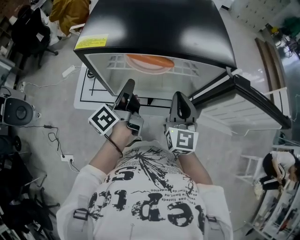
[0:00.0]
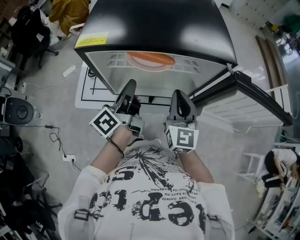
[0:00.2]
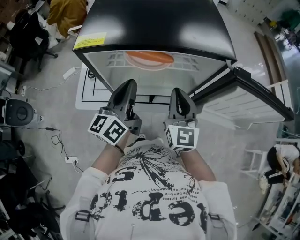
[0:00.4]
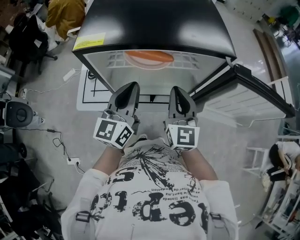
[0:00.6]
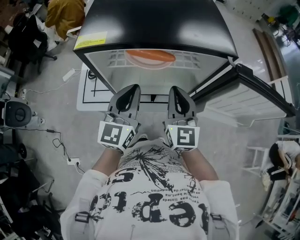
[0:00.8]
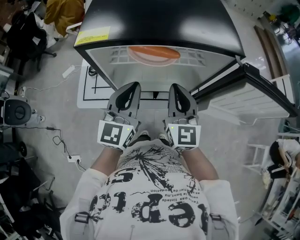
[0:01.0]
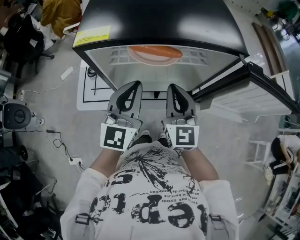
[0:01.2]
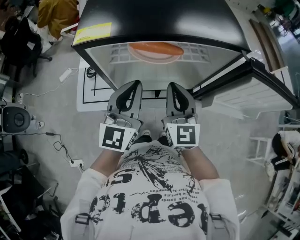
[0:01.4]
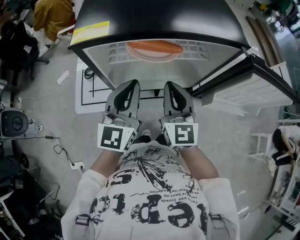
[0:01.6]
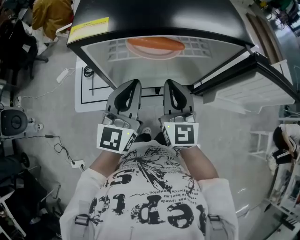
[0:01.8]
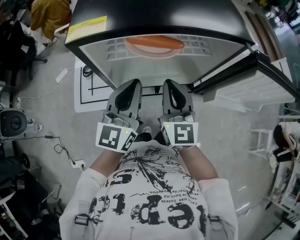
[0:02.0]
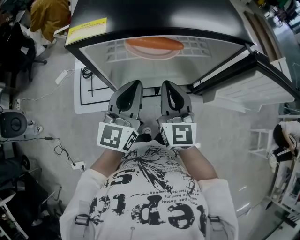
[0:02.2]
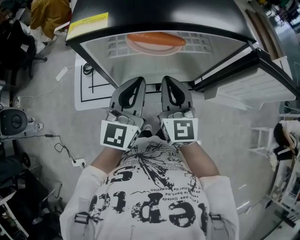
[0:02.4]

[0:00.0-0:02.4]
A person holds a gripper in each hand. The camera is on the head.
0:00.0 to 0:01.2: The right gripper moves some 5 cm.

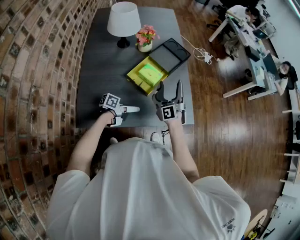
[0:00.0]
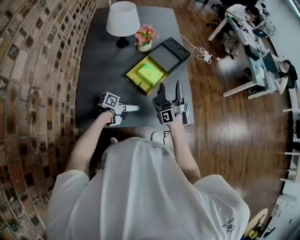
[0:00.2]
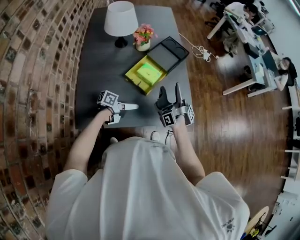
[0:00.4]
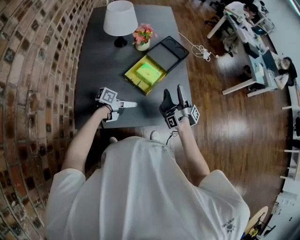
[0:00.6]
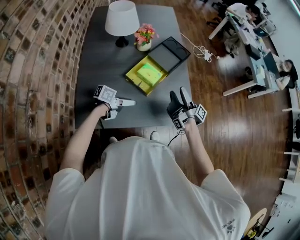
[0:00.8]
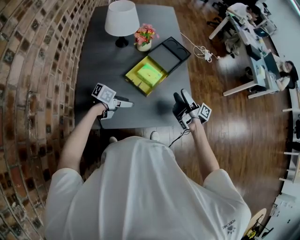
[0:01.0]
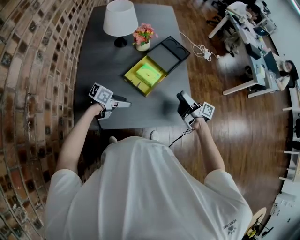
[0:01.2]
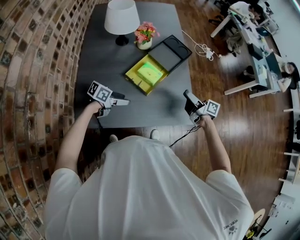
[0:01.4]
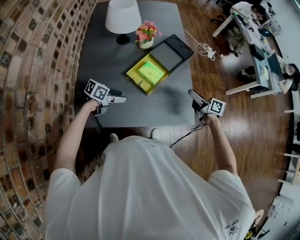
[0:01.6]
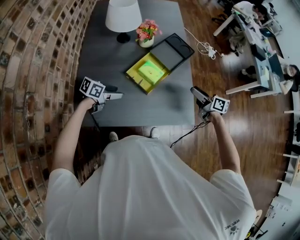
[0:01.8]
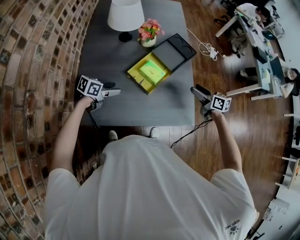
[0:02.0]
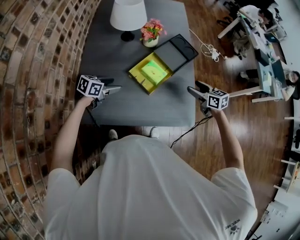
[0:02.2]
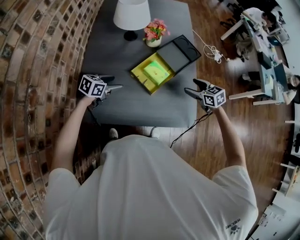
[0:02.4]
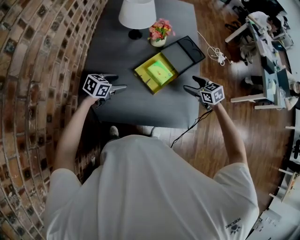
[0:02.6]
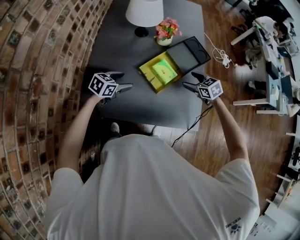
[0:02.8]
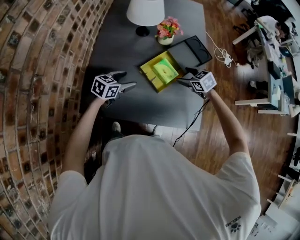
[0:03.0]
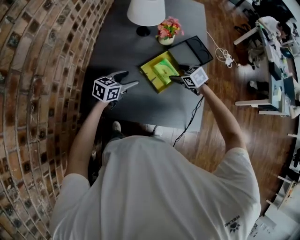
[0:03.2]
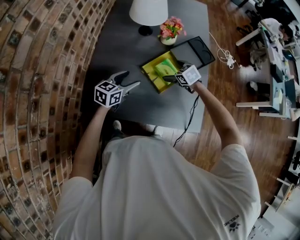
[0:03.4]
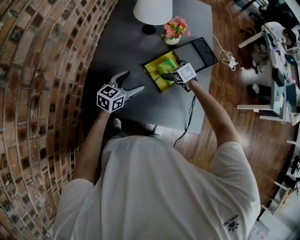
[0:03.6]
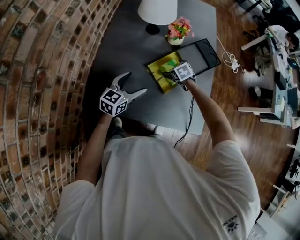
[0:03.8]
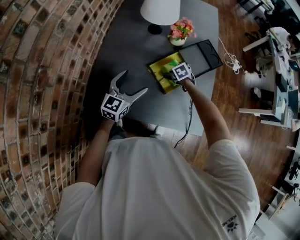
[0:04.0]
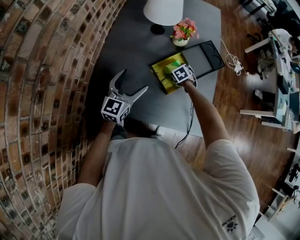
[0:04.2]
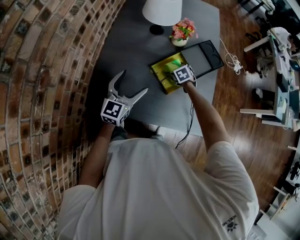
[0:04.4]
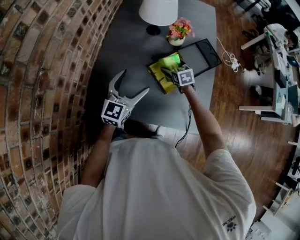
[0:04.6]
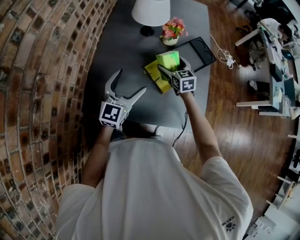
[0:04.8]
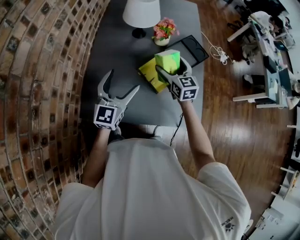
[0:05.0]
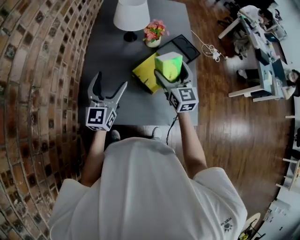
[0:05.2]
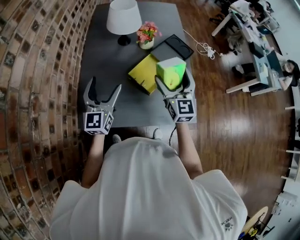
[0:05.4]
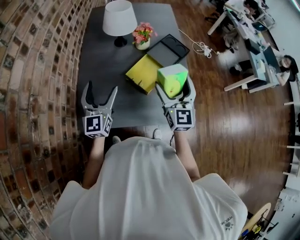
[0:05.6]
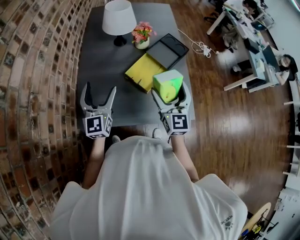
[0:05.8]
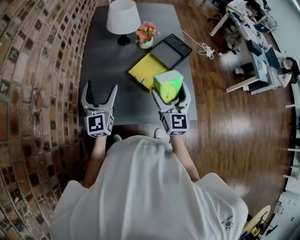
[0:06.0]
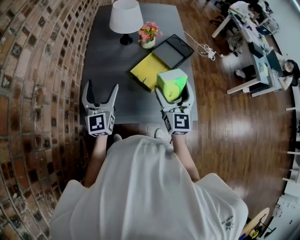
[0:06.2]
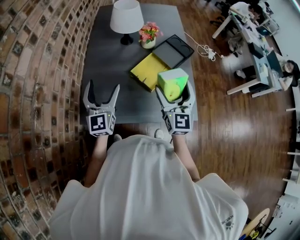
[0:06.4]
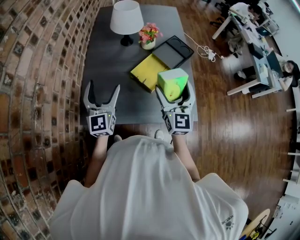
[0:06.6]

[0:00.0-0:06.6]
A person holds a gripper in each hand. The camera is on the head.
0:00.0 to 0:01.6: The right gripper moves about 15 cm, and tips its fingers downward by about 30 degrees. Meanwhile the left gripper moves approximately 10 cm, and changes its angle by some 30 degrees.
0:01.6 to 0:03.2: The left gripper changes place by roughly 10 cm, and changes its angle by approximately 40 degrees, while the right gripper changes place by approximately 20 cm, and rotates around the line of its fingers by roughly 60 degrees, counterclockwise from behind.
0:03.2 to 0:05.0: The right gripper shifts some 15 cm upward and to the left, and angles its fingers upward, by about 40 degrees. Meanwhile the left gripper is displaced upward by roughly 15 cm, and swivels approximately 40 degrees.
0:05.0 to 0:06.6: The right gripper goes approximately 20 cm backward and upward, and changes its angle by about 30 degrees. Meanwhile the left gripper shifts approximately 5 cm to the left.

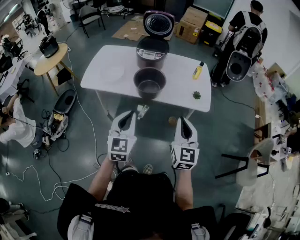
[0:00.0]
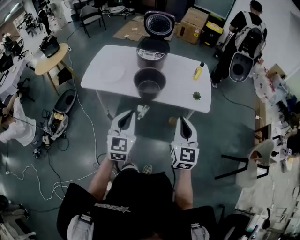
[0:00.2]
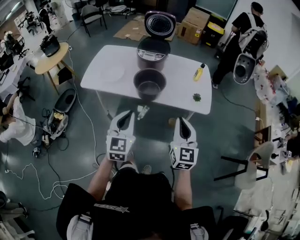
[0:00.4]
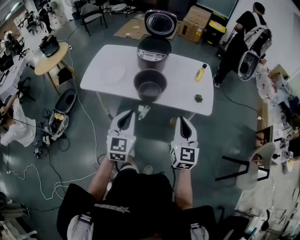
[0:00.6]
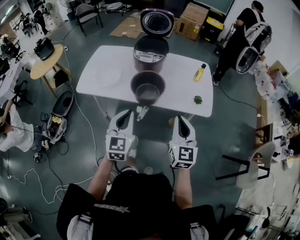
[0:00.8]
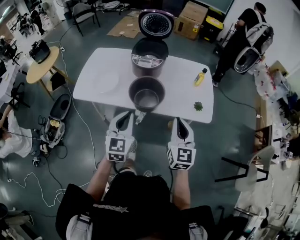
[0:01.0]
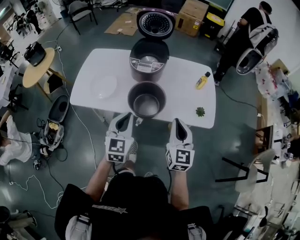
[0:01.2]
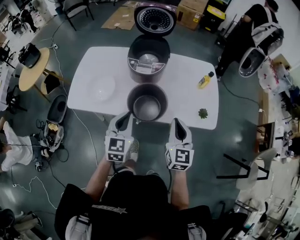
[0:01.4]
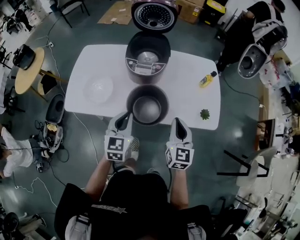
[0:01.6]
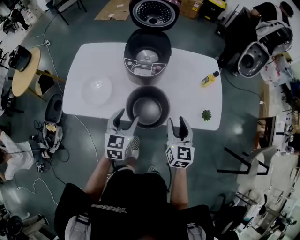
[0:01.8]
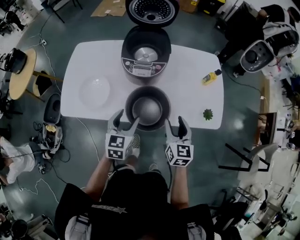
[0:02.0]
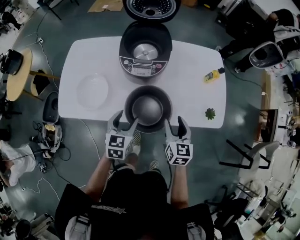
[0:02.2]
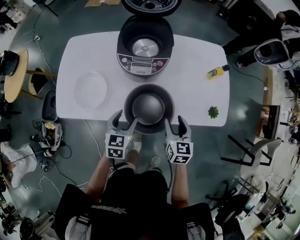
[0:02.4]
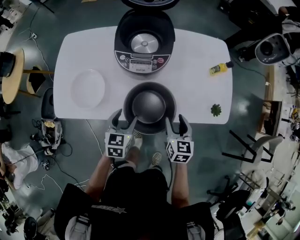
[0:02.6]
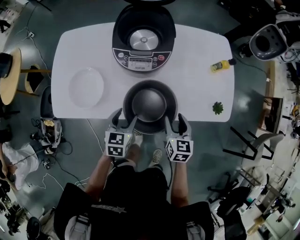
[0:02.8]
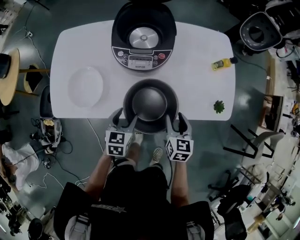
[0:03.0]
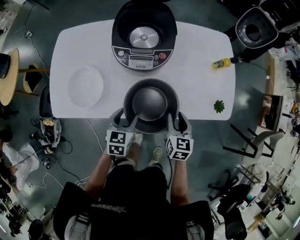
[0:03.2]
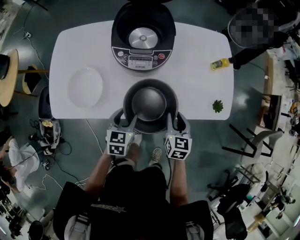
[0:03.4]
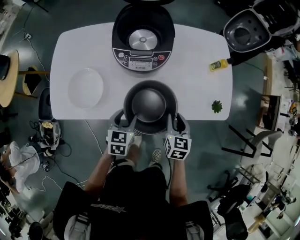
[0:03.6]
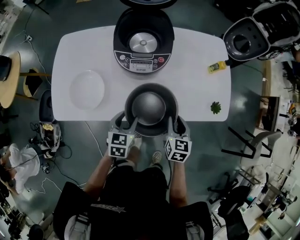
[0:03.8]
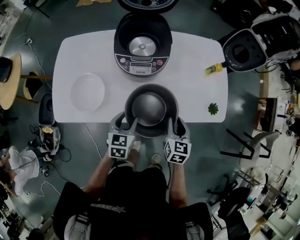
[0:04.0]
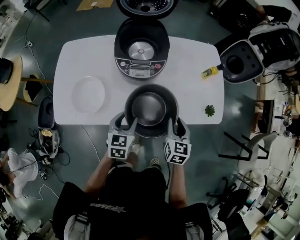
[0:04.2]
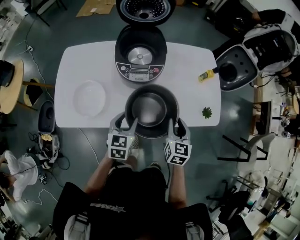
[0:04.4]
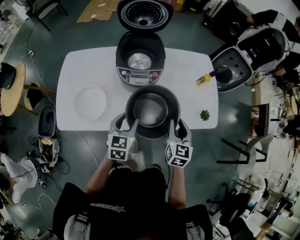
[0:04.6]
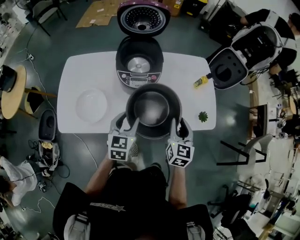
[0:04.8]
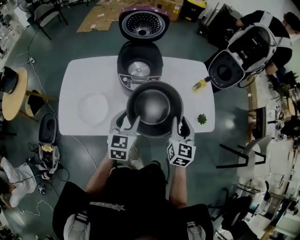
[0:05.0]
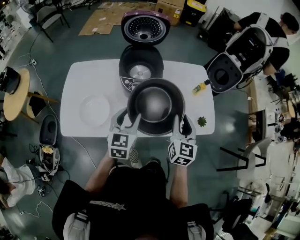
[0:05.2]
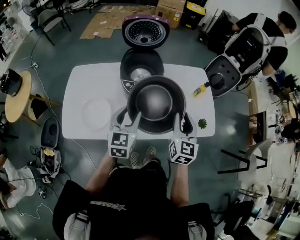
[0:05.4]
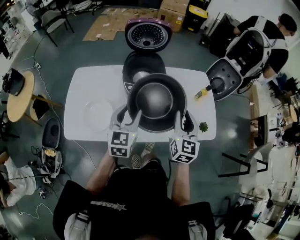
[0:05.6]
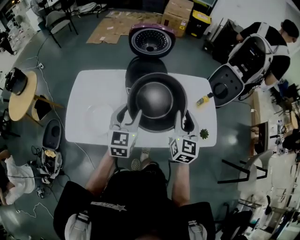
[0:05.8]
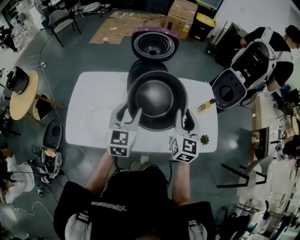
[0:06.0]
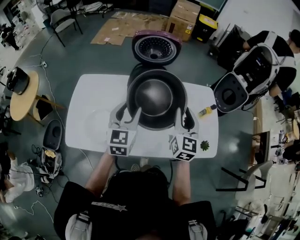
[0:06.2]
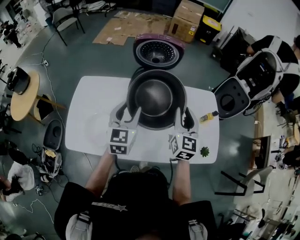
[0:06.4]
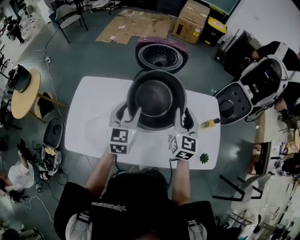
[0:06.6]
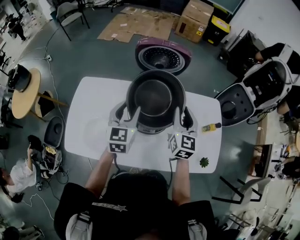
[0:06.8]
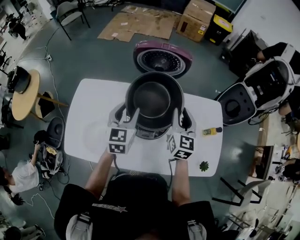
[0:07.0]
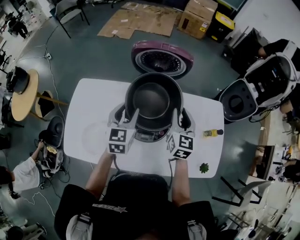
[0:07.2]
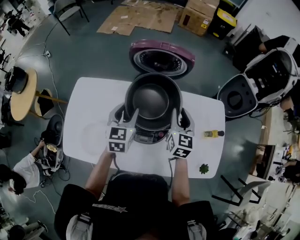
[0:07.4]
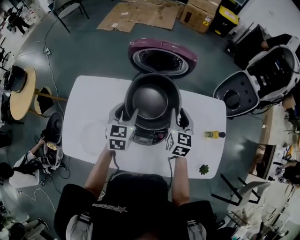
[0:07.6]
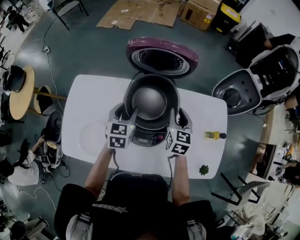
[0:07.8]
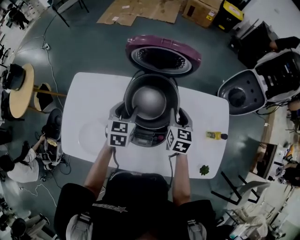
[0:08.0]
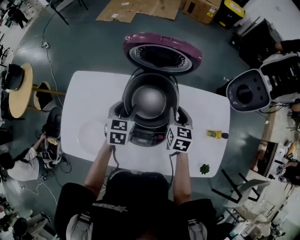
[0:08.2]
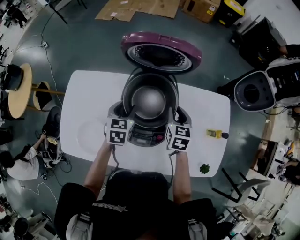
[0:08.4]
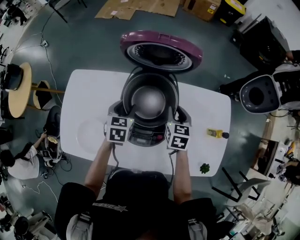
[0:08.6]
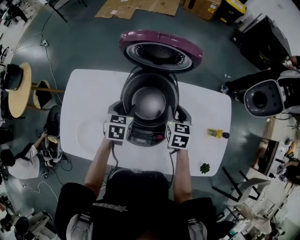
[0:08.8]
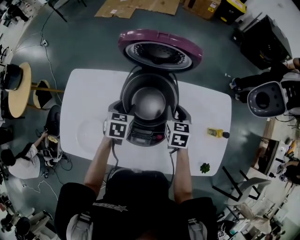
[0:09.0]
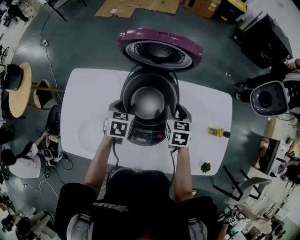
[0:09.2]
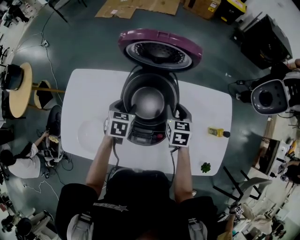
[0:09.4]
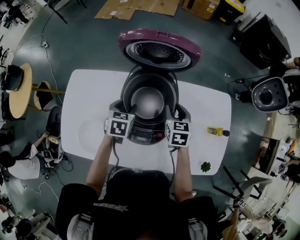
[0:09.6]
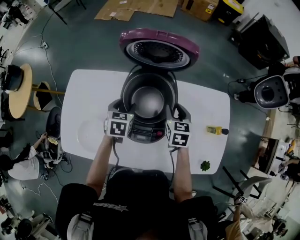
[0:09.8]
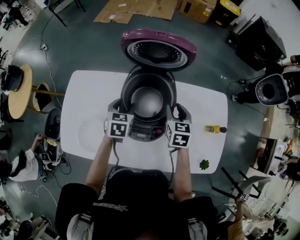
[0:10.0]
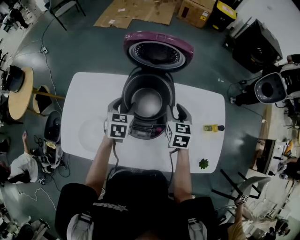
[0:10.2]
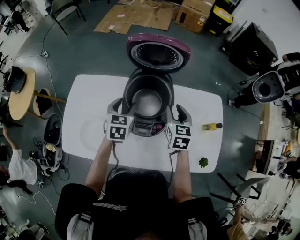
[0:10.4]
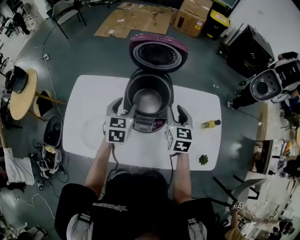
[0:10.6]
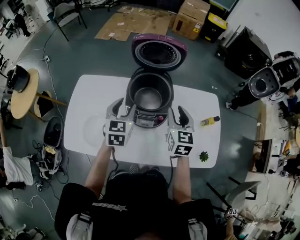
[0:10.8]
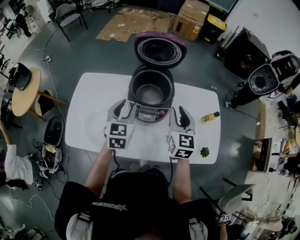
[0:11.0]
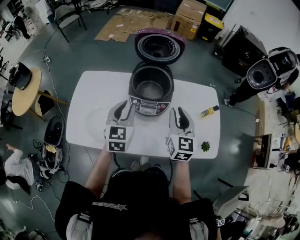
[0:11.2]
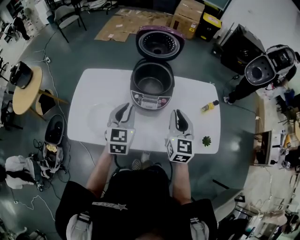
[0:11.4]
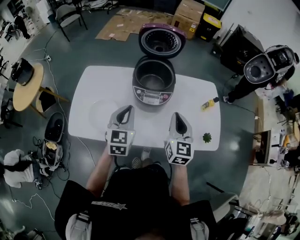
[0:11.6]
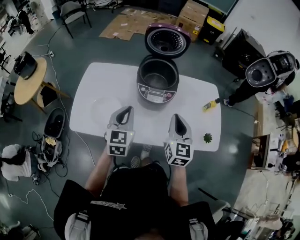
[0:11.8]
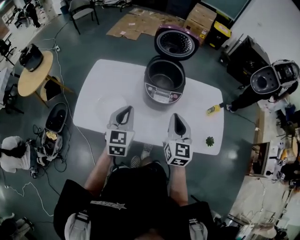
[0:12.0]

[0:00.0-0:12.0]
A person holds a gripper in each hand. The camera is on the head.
0:00.0 to 0:01.6: Both grippers move forward, some 25 cm.
0:01.6 to 0:03.0: The grippers both shift downward by approximately 15 cm. The left gripper rotates roughly 30 degrees, and opens up, while the right gripper rotates some 20 degrees, and opens its fingers.
0:03.0 to 0:04.4: The two grippers go some 10 cm upward. The right gripper closes up.
0:04.4 to 0:06.0: Both grippers move upward and forward, roughly 20 cm. The left gripper swivels some 20 degrees, while the right gripper swivels approximately 20 degrees.
0:06.0 to 0:07.6: The grippers both shift forward and downward by about 25 cm.
0:07.6 to 0:09.0: The grippers both shift downward by about 10 cm. The right gripper swivels approximately 20 degrees. Meanwhile the left gripper turns by approximately 20 degrees.
0:09.0 to 0:10.4: Both grippers move upward, about 10 cm.
0:10.4 to 0:12.0: The two grippers go roughly 25 cm backward. The left gripper closes up. Meanwhile the right gripper swivels about 20 degrees, and closes its fingers.

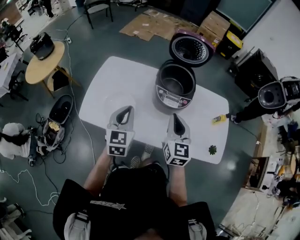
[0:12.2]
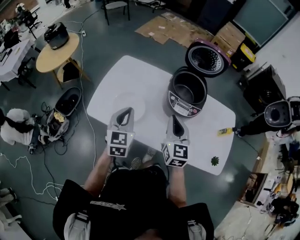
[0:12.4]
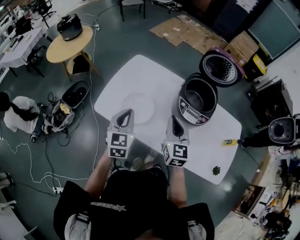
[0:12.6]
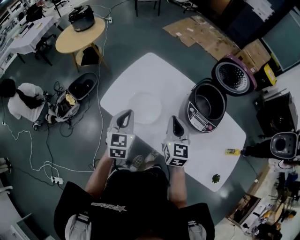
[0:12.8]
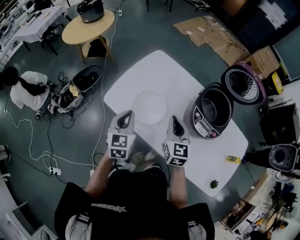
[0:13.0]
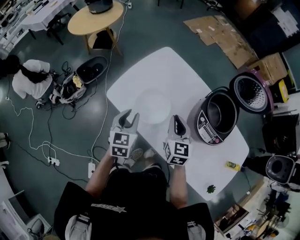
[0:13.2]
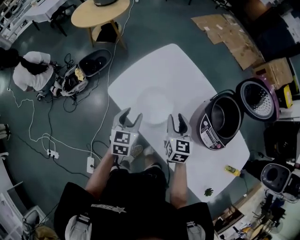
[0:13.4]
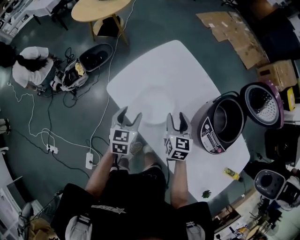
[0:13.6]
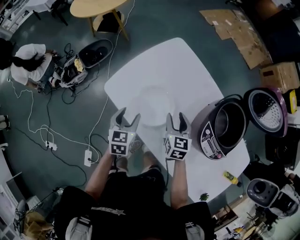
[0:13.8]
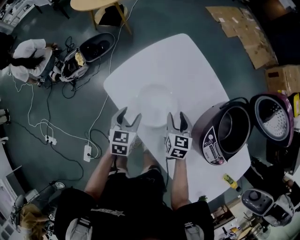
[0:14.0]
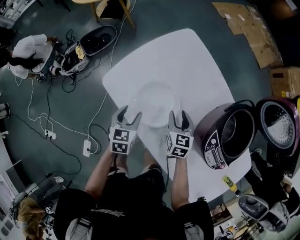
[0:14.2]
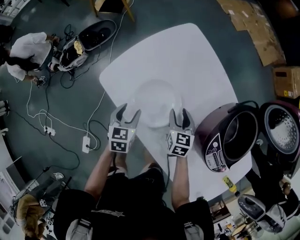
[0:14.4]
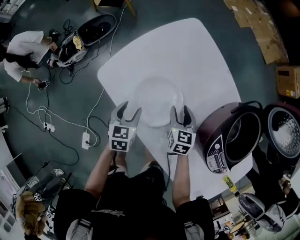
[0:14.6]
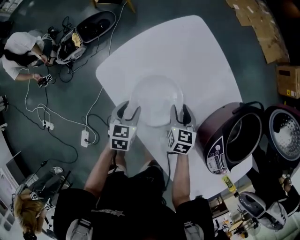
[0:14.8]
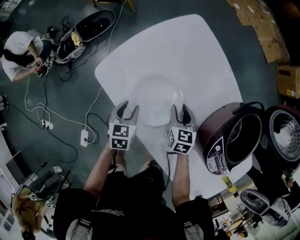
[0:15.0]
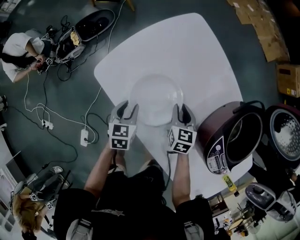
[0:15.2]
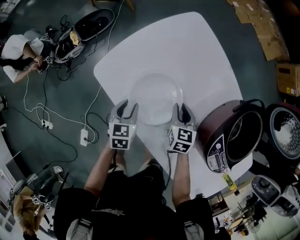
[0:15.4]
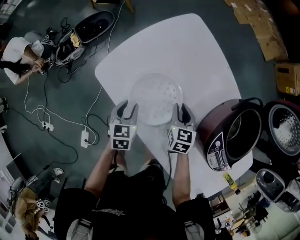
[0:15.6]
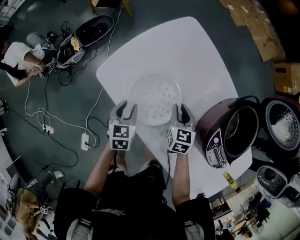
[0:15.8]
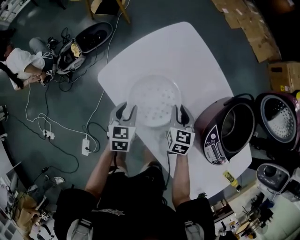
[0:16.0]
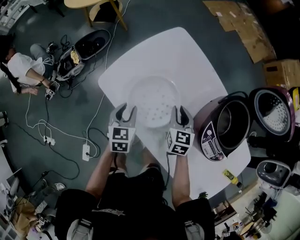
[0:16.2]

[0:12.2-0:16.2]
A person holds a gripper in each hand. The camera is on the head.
0:12.2 to 0:13.6: The left gripper travels downward by roughly 15 cm, swivels some 40 degrees, and opens up, while the right gripper shifts by approximately 30 cm, rotates approximately 40 degrees, and opens up.
0:13.6 to 0:14.8: The grippers both shift downward by some 15 cm.
0:14.8 to 0:16.2: Both grippers move upward, roughly 10 cm. The right gripper closes.
